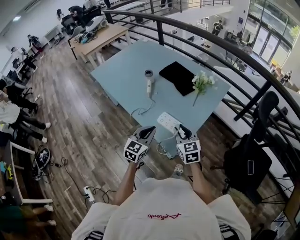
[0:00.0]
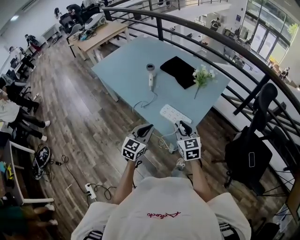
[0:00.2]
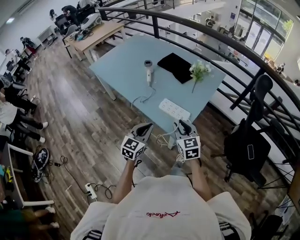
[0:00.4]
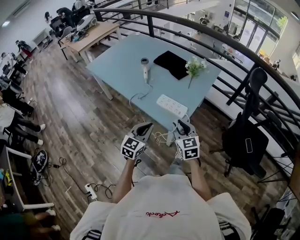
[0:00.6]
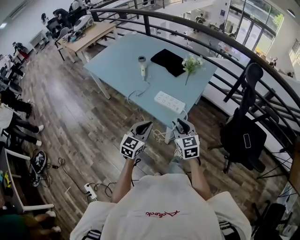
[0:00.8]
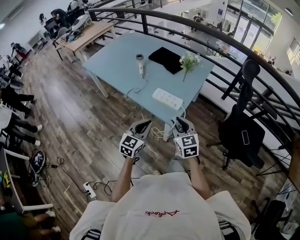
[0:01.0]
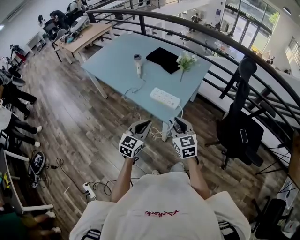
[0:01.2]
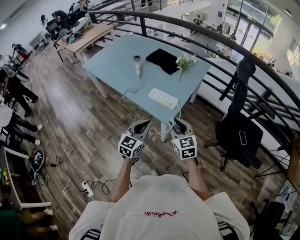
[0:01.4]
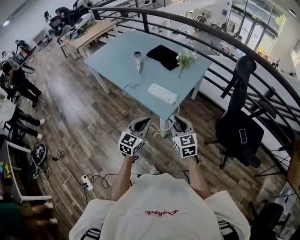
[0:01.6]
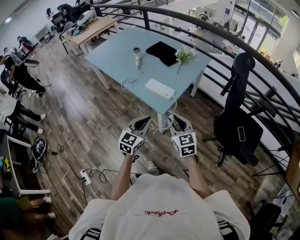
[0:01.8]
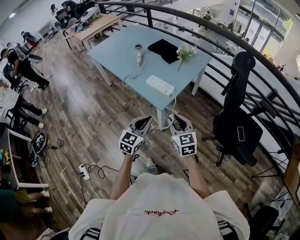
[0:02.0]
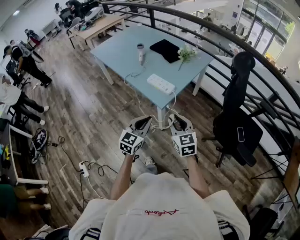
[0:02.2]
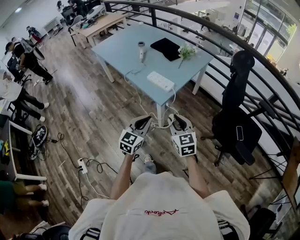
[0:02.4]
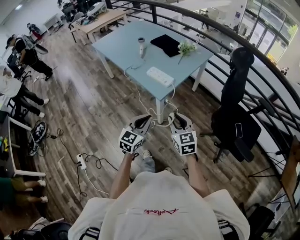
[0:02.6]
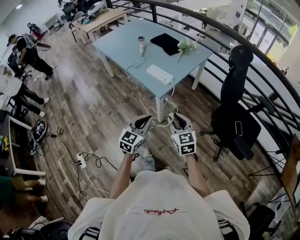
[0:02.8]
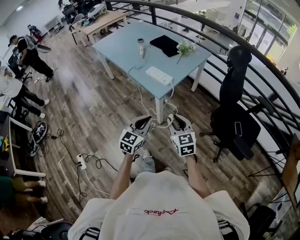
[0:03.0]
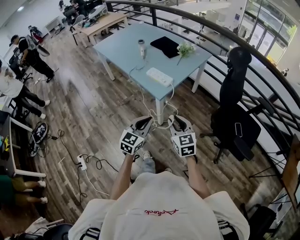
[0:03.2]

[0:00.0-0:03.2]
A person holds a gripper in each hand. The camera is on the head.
0:00.0 to 0:01.6: Both grippers move backward, approximately 20 cm.
0:01.6 to 0:03.2: Both grippers move backward and to the right, approximately 15 cm.

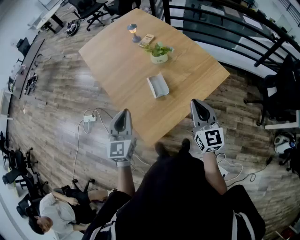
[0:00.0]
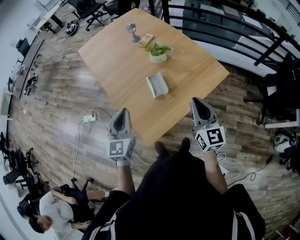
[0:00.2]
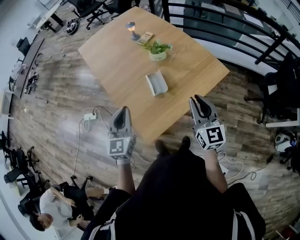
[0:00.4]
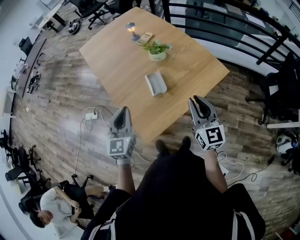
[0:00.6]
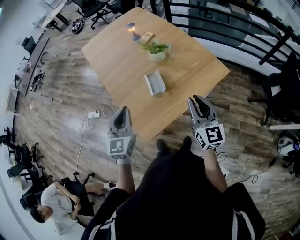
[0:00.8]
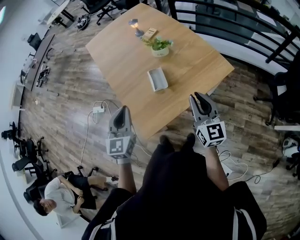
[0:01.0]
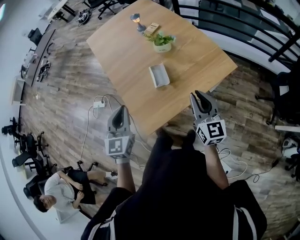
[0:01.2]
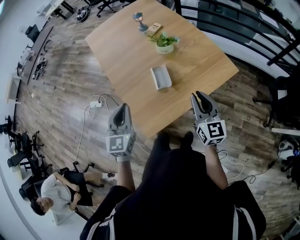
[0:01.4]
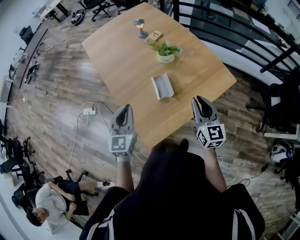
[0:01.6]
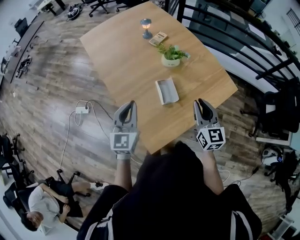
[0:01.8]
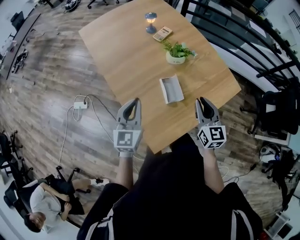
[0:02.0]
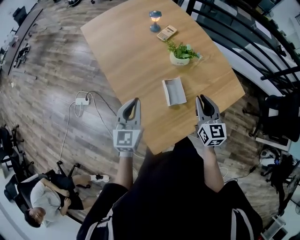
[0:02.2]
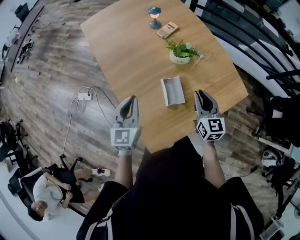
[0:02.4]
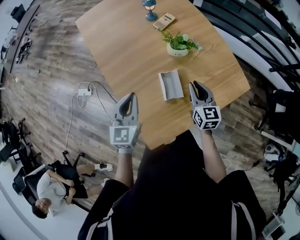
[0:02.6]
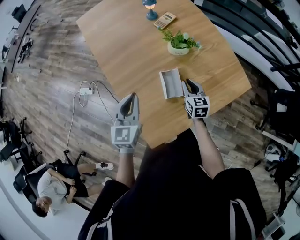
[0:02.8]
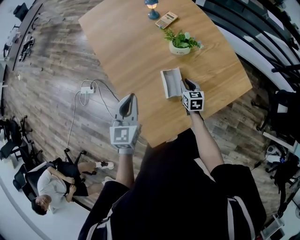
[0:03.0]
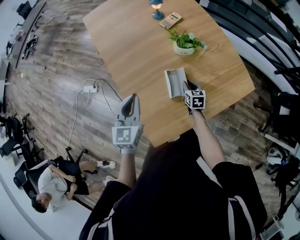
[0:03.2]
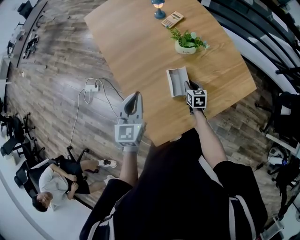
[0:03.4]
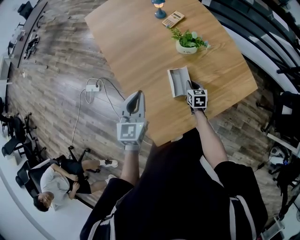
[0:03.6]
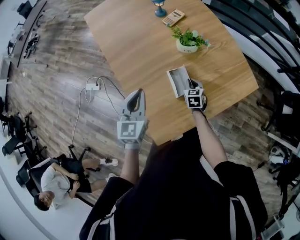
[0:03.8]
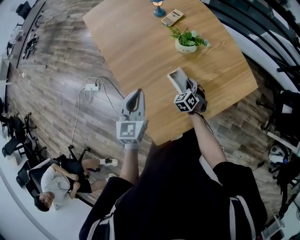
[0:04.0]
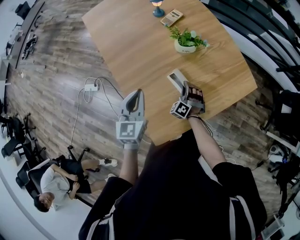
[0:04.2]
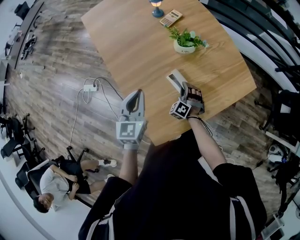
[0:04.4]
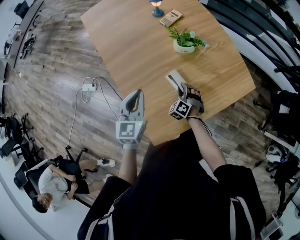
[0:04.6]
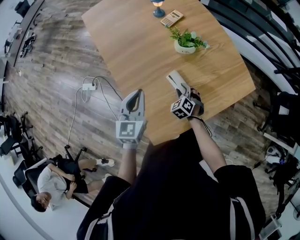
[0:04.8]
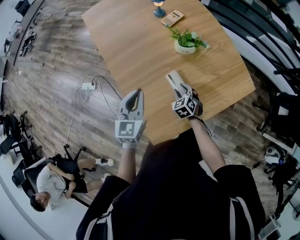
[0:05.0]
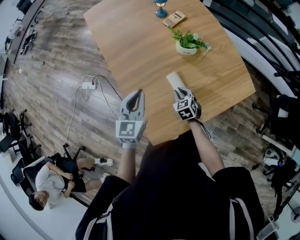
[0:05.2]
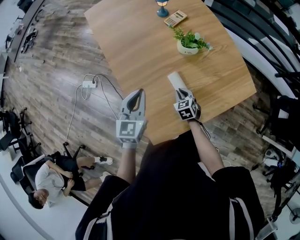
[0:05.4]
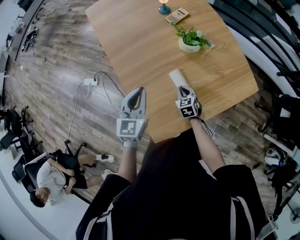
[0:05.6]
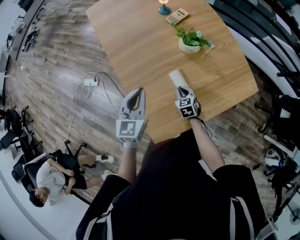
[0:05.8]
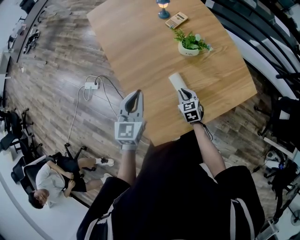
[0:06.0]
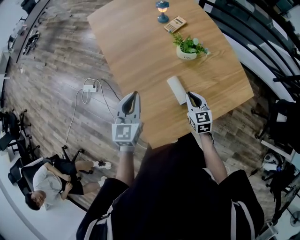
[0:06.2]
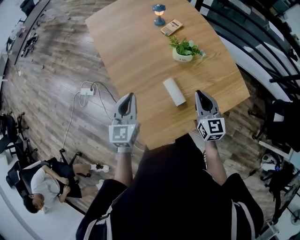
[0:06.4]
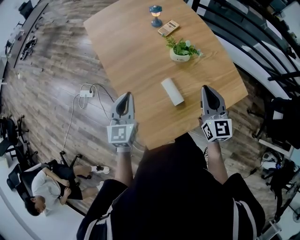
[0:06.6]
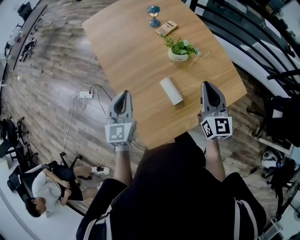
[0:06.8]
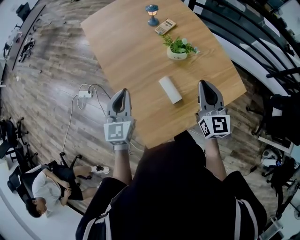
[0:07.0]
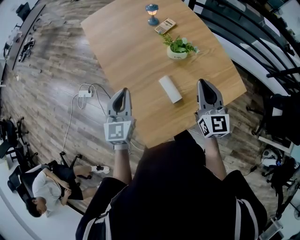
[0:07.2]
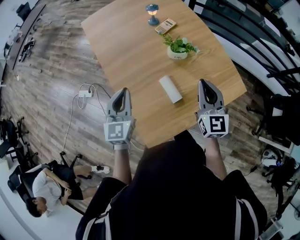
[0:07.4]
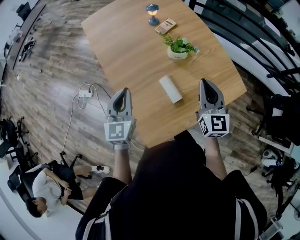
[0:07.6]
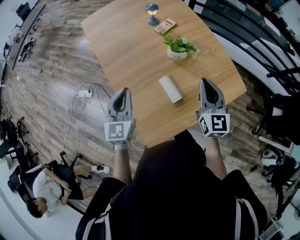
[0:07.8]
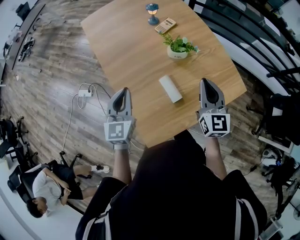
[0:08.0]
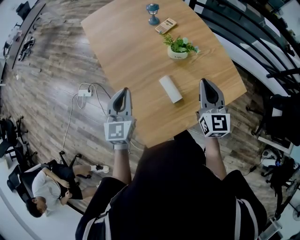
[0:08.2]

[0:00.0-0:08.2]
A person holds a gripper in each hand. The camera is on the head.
0:00.0 to 0:01.6: The right gripper shifts some 5 cm forward.
0:01.6 to 0:03.2: The left gripper heads forward and downward, covering some 10 cm; the right gripper goes roughly 35 cm downward and forward, and angles its fingers downward, by about 30 degrees.
0:03.2 to 0:05.0: The right gripper travels to the left by some 5 cm, and rotates roughly 40 degrees.
0:05.0 to 0:06.6: The right gripper heads upward, covering approximately 25 cm, angles its fingers upward, by approximately 40 degrees, and closes.
0:06.6 to 0:08.2: The grippers move only a little.

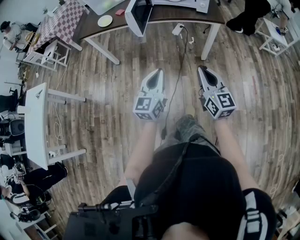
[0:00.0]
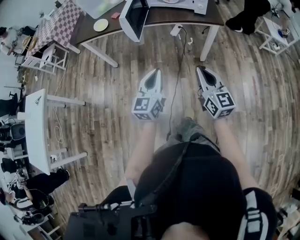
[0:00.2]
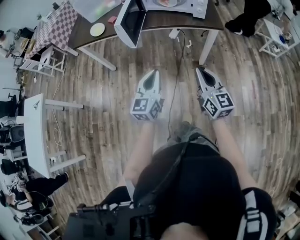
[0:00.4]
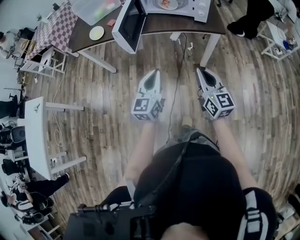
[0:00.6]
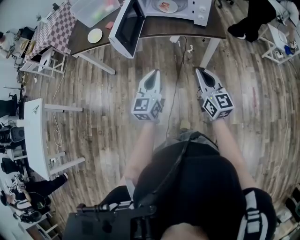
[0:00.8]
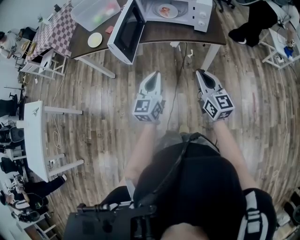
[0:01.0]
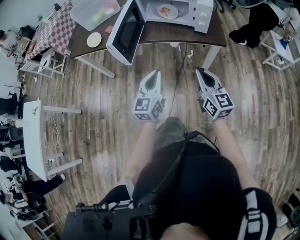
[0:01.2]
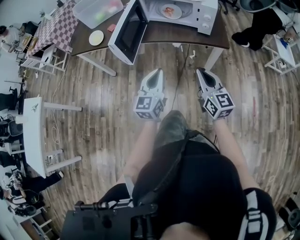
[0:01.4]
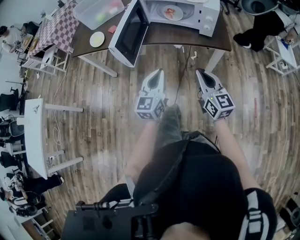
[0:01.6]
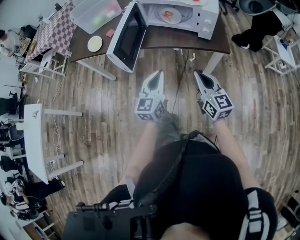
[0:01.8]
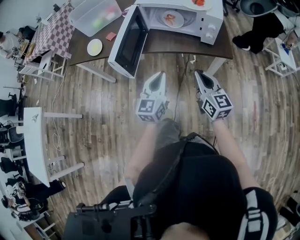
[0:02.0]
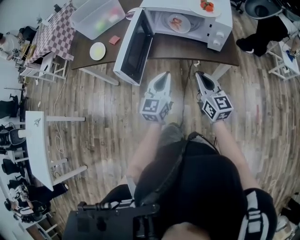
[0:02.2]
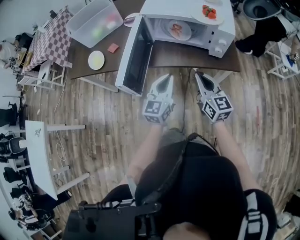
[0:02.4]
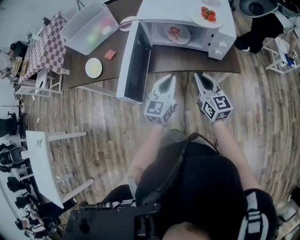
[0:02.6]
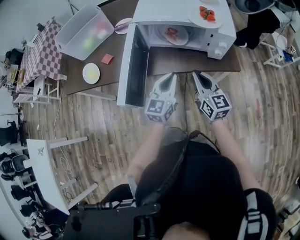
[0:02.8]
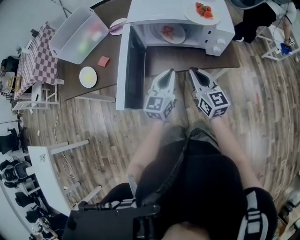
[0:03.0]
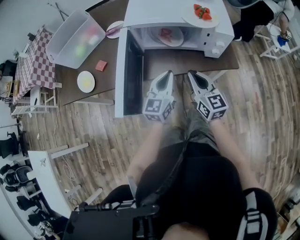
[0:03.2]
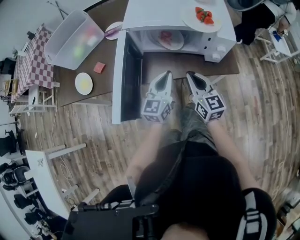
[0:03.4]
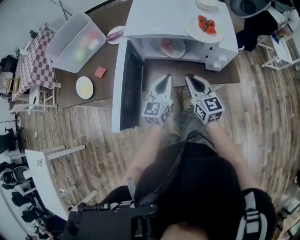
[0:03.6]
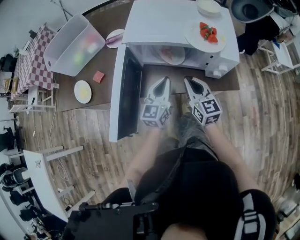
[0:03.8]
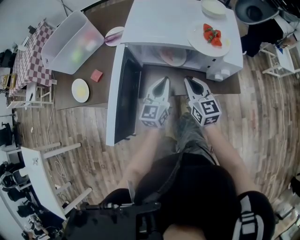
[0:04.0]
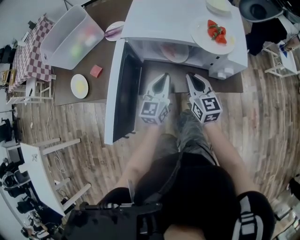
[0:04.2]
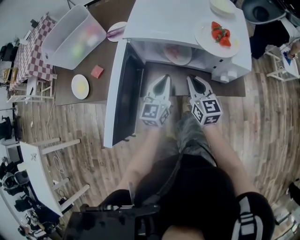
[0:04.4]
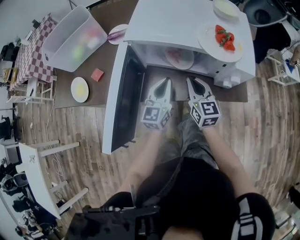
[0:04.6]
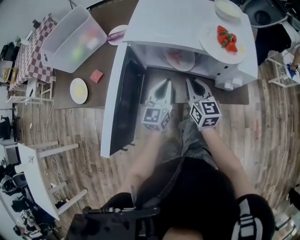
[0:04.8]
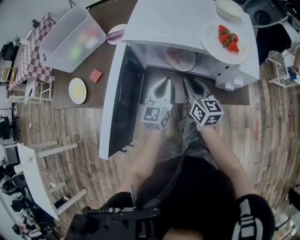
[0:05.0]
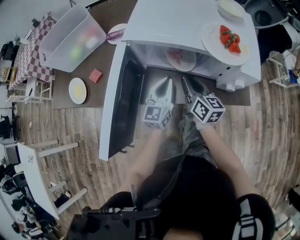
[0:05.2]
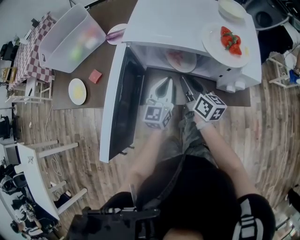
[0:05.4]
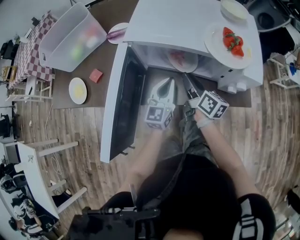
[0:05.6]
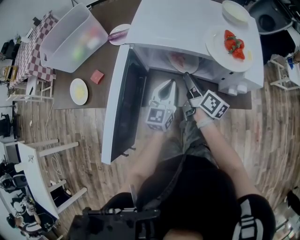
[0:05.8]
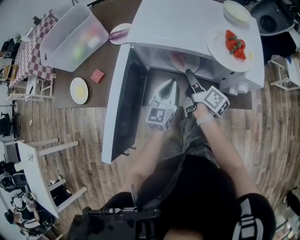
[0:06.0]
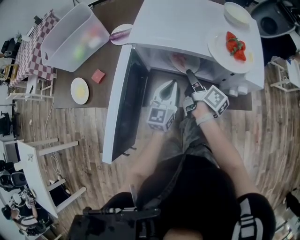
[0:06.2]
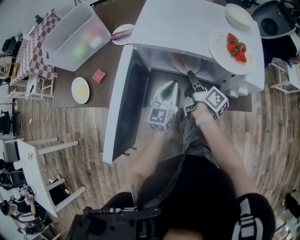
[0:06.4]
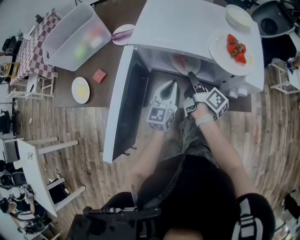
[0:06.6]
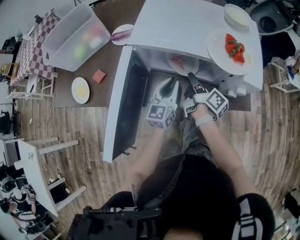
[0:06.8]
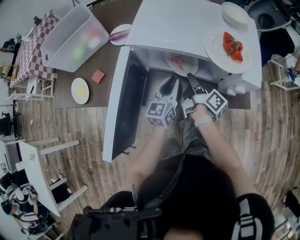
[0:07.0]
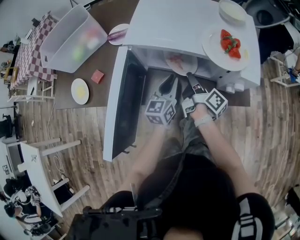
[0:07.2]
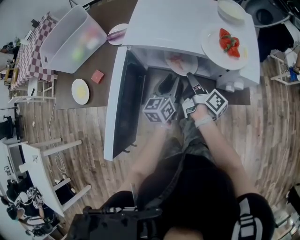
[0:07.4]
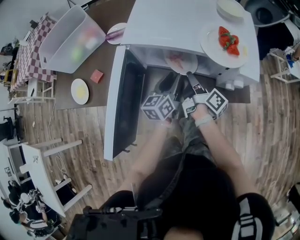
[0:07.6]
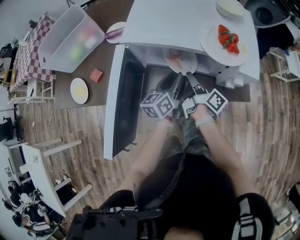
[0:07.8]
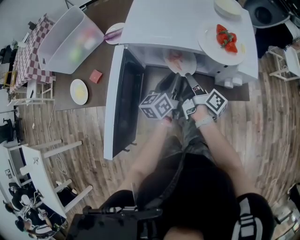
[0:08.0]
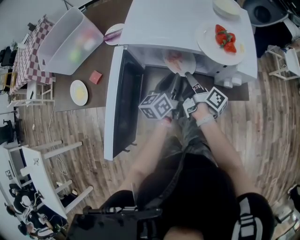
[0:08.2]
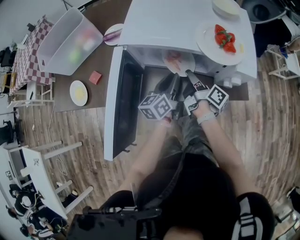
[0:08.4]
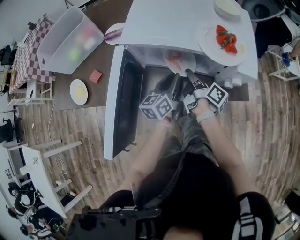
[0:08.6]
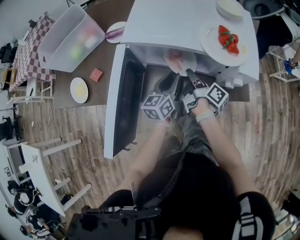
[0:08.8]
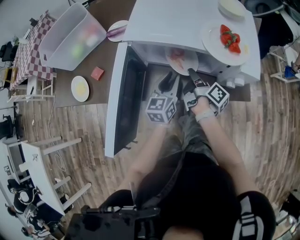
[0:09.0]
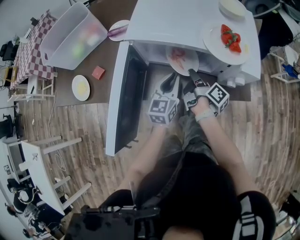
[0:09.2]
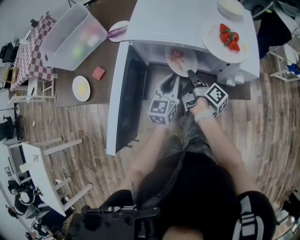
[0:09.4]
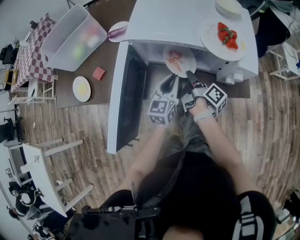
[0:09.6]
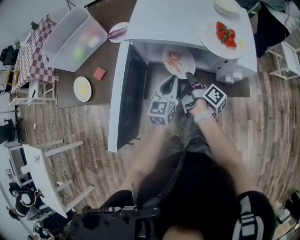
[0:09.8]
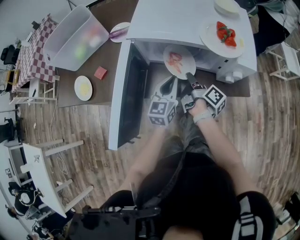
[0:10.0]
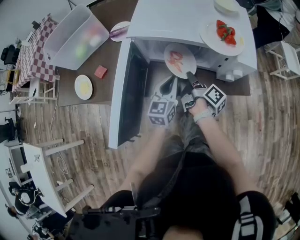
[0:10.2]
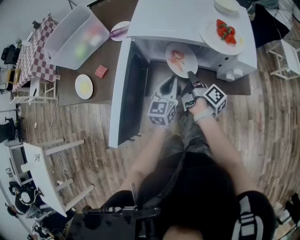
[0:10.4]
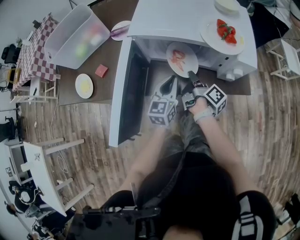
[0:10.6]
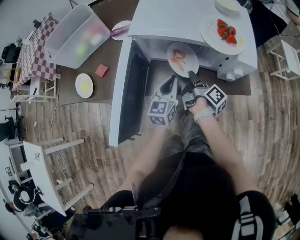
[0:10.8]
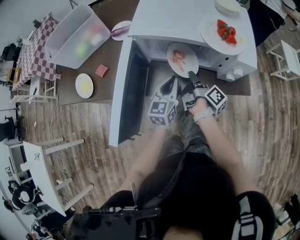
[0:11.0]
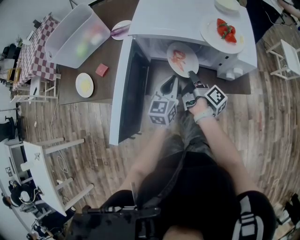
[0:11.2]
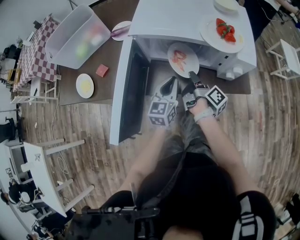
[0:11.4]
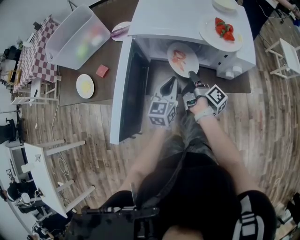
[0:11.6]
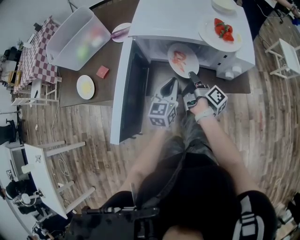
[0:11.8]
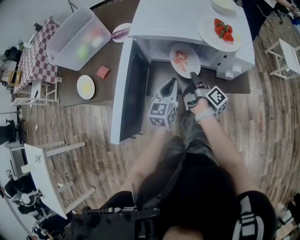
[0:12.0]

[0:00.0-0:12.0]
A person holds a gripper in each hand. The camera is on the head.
0:00.0 to 0:01.6: The left gripper moves roughly 25 cm.
0:01.6 to 0:03.0: The left gripper moves about 20 cm.
0:03.0 to 0:04.4: The left gripper ends up some 10 cm from where it was.
0:04.4 to 0:06.0: The left gripper ends up about 5 cm from where it was.
0:06.0 to 0:07.6: The left gripper changes its angle by some 30 degrees, and opens up.
0:09.0 to 0:10.4: The left gripper closes its fingers.

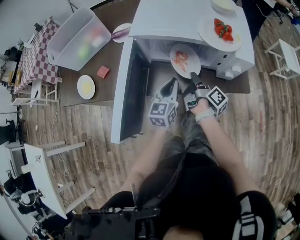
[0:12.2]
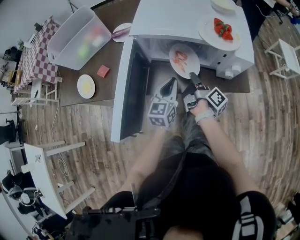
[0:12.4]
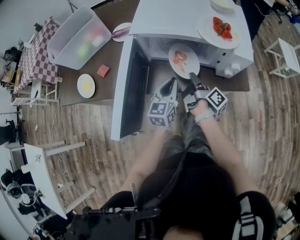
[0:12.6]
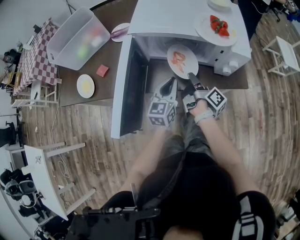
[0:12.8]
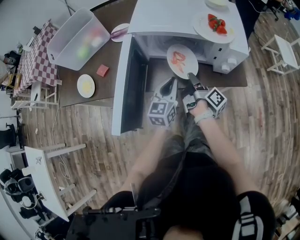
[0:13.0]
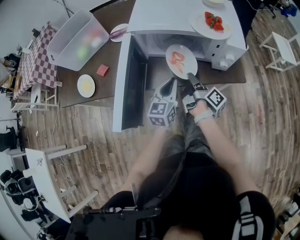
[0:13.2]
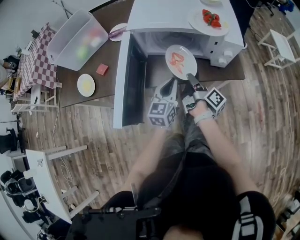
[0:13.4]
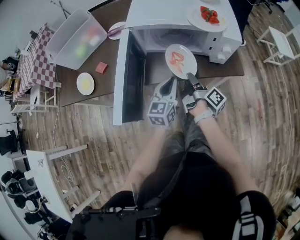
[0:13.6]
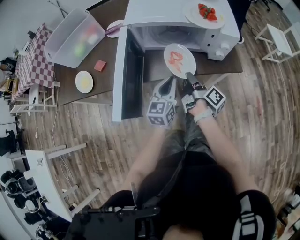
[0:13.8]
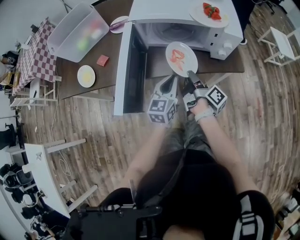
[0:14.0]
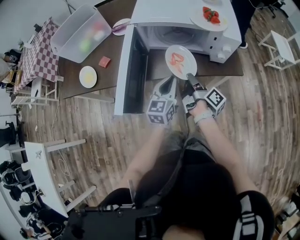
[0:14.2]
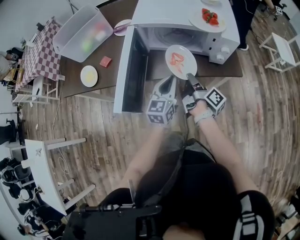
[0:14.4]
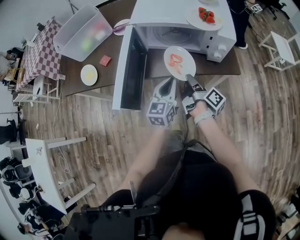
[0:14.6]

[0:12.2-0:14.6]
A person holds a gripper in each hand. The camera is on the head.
0:12.2 to 0:13.4: The left gripper shifts by roughly 5 cm.
0:13.4 to 0:14.6: The left gripper changes place by about 5 cm.
